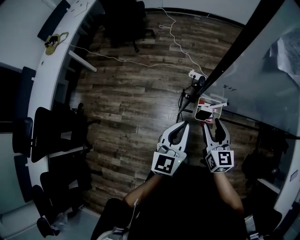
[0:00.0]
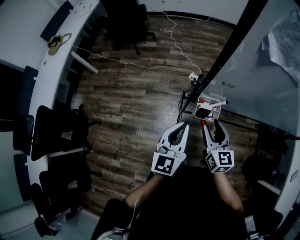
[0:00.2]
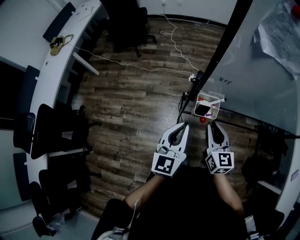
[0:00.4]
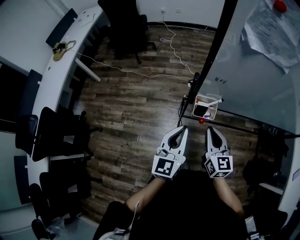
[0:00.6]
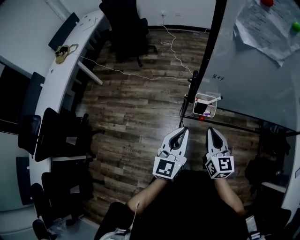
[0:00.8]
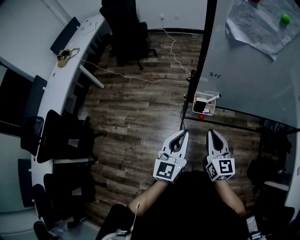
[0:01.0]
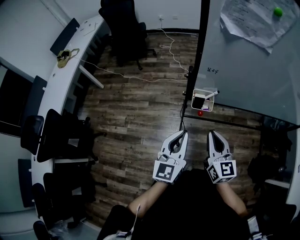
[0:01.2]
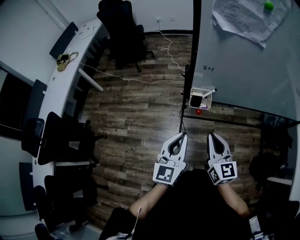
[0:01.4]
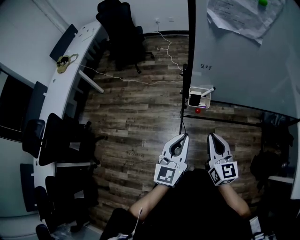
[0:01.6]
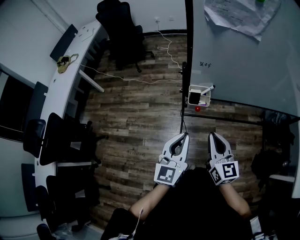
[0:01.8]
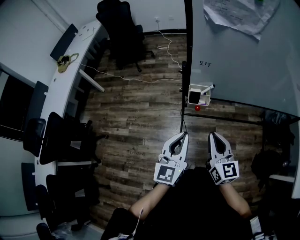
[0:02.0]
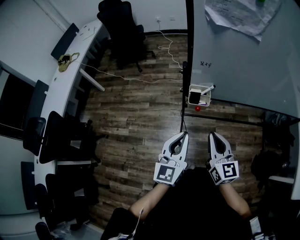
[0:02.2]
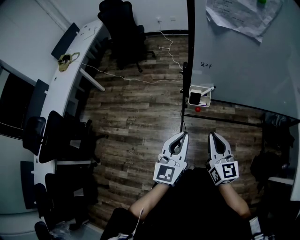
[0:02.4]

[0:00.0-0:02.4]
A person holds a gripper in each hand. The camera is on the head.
0:00.0 to 0:01.2: The left gripper moves backward, roughly 10 cm, while the right gripper moves backward and upward, approximately 15 cm, and closes.
0:01.2 to 0:02.4: The grippers make only small movements.

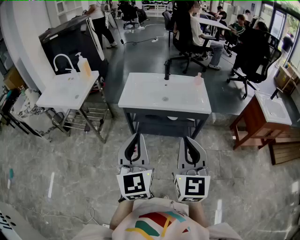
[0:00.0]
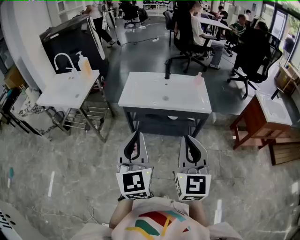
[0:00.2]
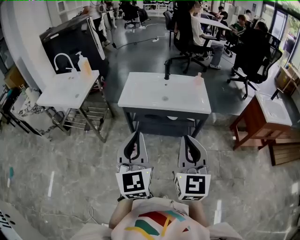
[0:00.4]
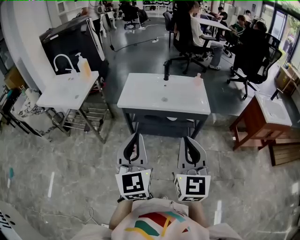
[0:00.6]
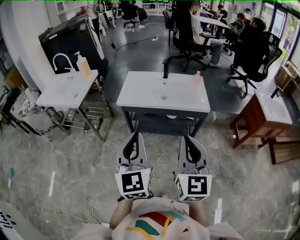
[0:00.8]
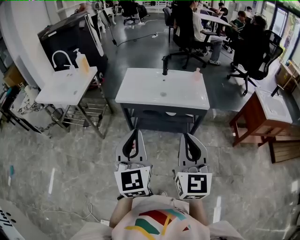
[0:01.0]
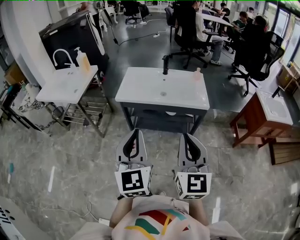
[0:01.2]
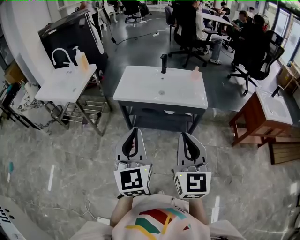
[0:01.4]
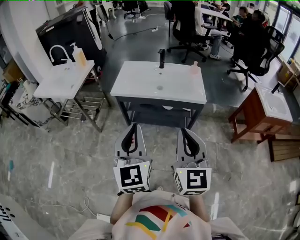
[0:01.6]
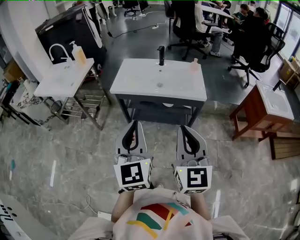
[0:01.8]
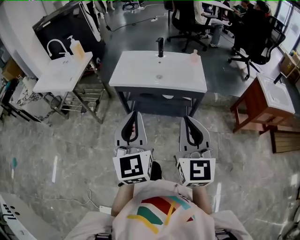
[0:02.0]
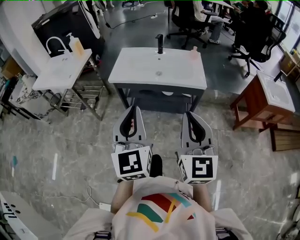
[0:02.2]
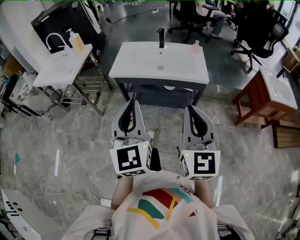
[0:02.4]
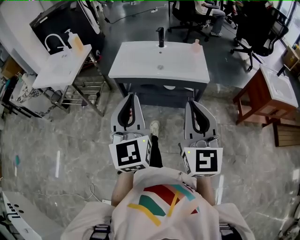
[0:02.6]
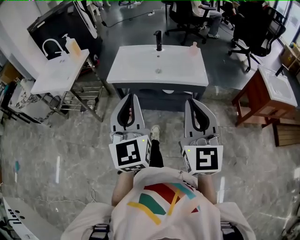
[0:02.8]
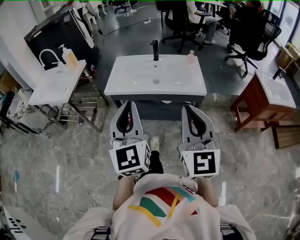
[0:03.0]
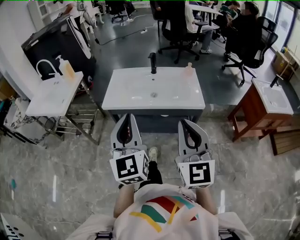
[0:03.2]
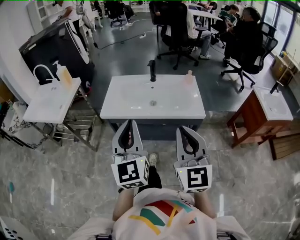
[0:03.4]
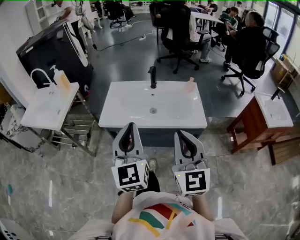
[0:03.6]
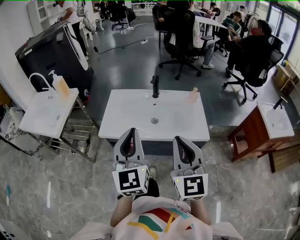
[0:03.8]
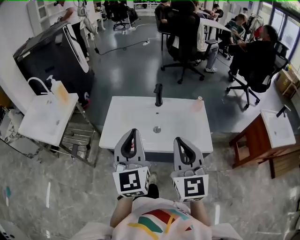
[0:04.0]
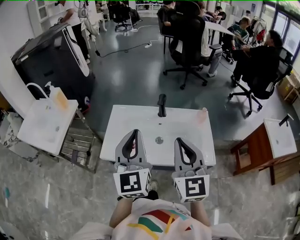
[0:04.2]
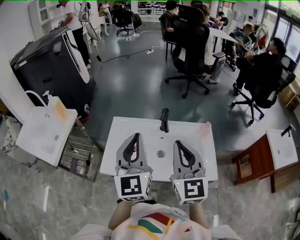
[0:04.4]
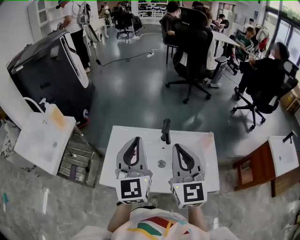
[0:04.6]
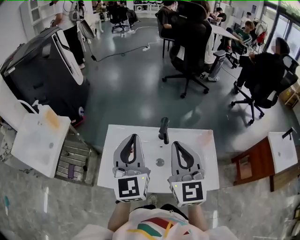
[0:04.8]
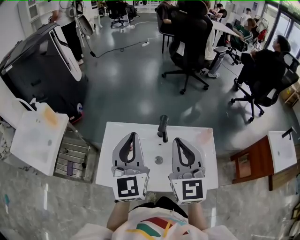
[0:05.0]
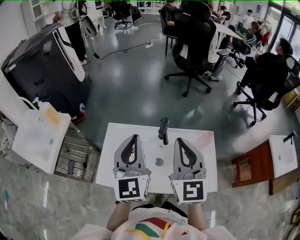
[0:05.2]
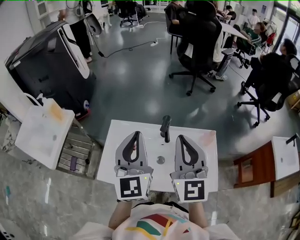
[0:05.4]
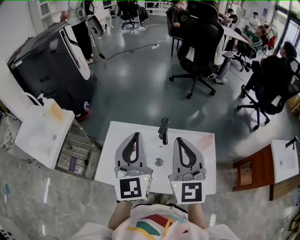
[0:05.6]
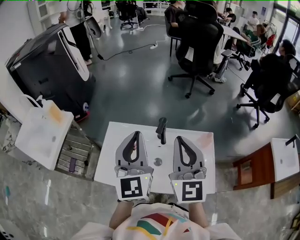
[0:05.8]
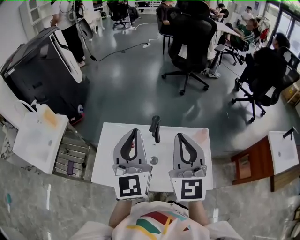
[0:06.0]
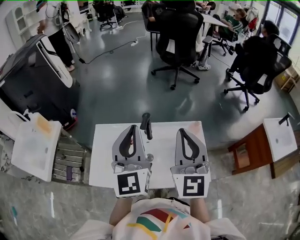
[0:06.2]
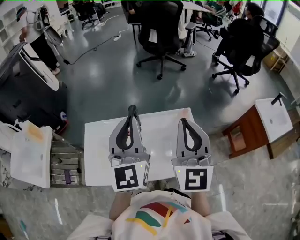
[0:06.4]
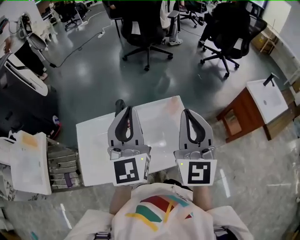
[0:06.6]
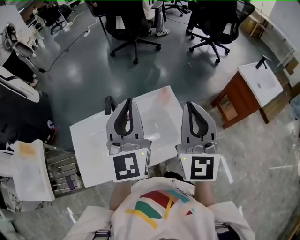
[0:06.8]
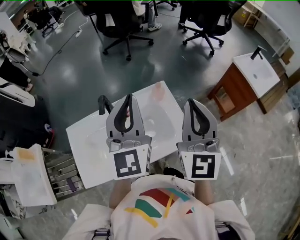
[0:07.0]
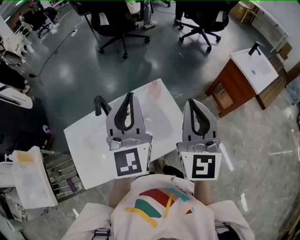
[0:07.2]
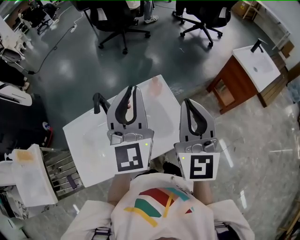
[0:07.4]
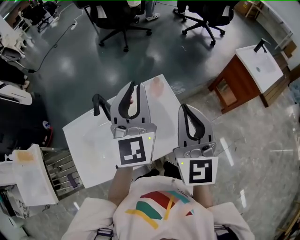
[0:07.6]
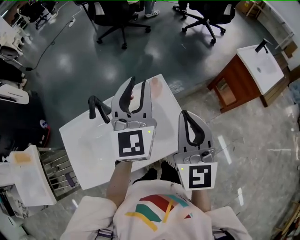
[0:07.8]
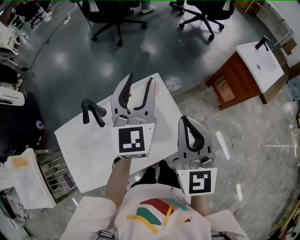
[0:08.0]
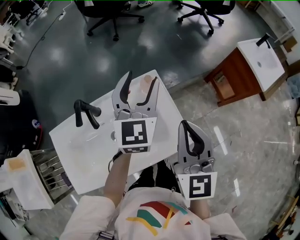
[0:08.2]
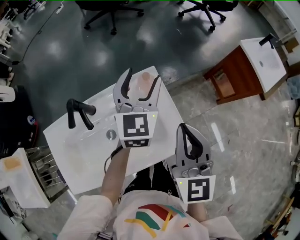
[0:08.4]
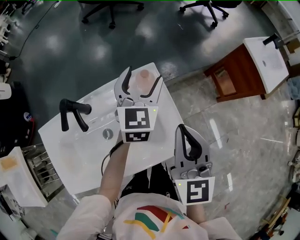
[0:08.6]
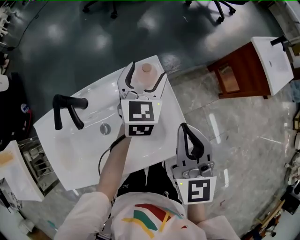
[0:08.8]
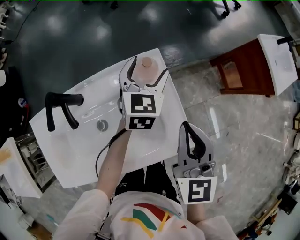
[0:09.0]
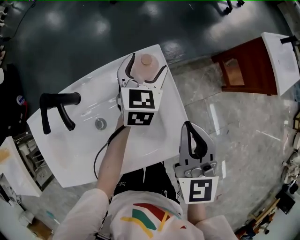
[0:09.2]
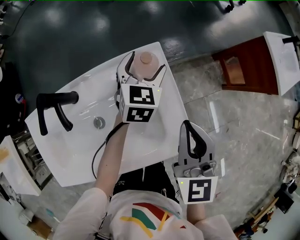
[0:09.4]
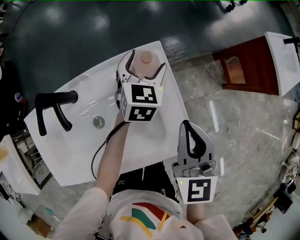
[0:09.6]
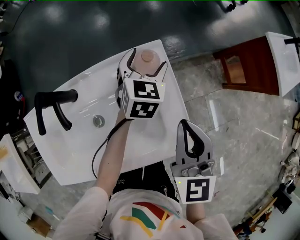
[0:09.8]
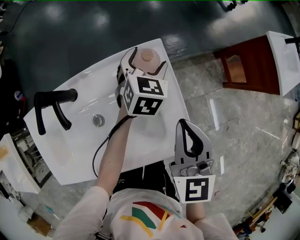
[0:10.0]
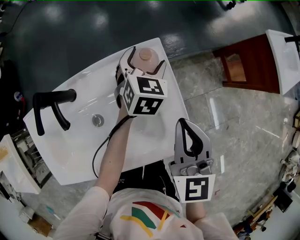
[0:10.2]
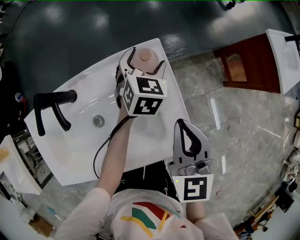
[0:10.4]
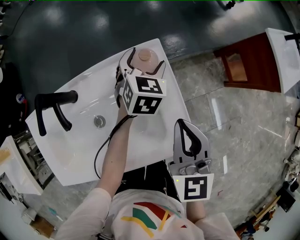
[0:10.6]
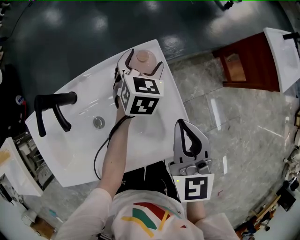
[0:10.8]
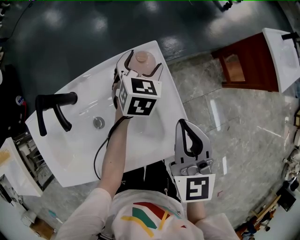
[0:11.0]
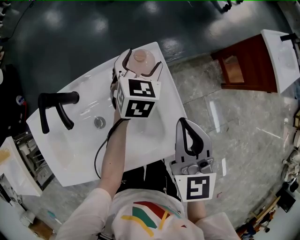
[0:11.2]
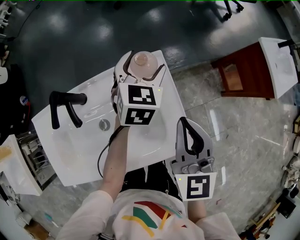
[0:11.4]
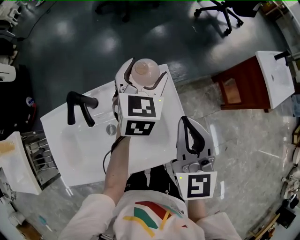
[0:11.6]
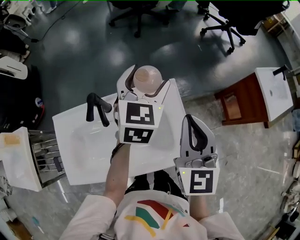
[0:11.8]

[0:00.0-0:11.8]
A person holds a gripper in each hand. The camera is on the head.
0:00.0 to 0:01.4: There are only small adjustments of the grippers.
0:01.4 to 0:03.0: Both grippers move forward, some 5 cm.
0:03.0 to 0:04.4: Both grippers travel together forward, roughly 40 cm.
0:04.4 to 0:06.0: Both grippers travel together forward and to the right, some 10 cm.
0:06.0 to 0:07.4: The right gripper shifts by some 20 cm, and rotates approximately 30 degrees; the left gripper shifts by roughly 25 cm, and changes its angle by approximately 30 degrees.
0:07.4 to 0:08.8: The right gripper moves downward, approximately 20 cm, and changes its angle by about 20 degrees. Meanwhile the left gripper travels downward and forward by roughly 30 cm, swivels approximately 30 degrees, and opens up.
0:08.8 to 0:10.4: The left gripper shifts approximately 10 cm downward. Meanwhile the right gripper goes approximately 5 cm downward.
0:10.4 to 0:11.8: The left gripper heads upward, covering approximately 25 cm; the right gripper travels upward by roughly 15 cm.

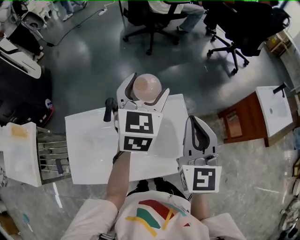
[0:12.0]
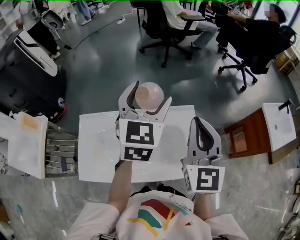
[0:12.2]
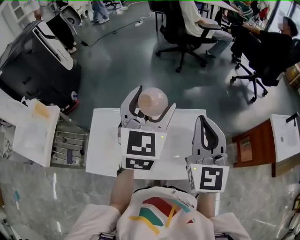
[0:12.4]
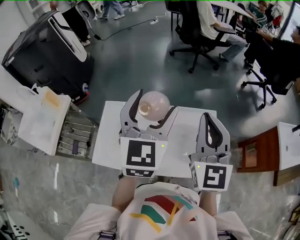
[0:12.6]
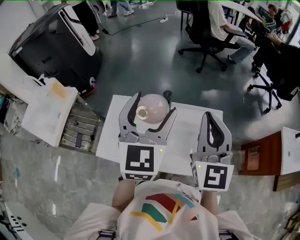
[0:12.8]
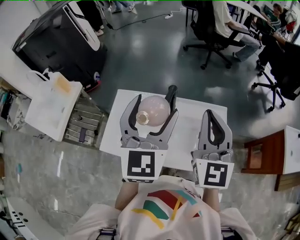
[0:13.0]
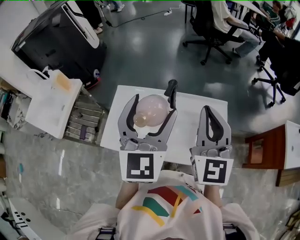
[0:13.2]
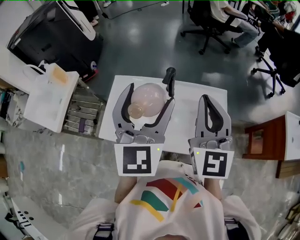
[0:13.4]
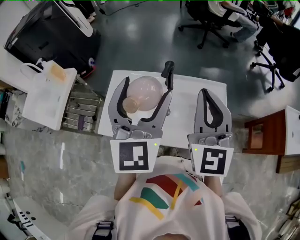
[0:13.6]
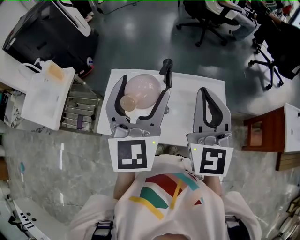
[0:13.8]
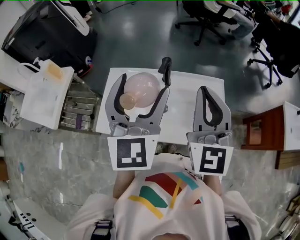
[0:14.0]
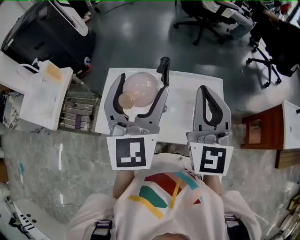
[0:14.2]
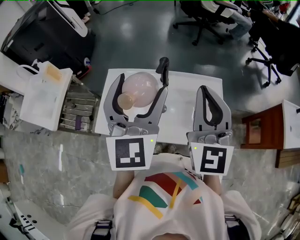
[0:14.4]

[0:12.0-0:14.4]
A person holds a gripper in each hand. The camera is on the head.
0:12.0 to 0:13.2: The right gripper travels to the left by some 15 cm, and rotates about 20 degrees; the left gripper is displaced to the left and backward by some 25 cm, and changes its angle by some 30 degrees.
0:13.2 to 0:14.4: The grippers move only a little.

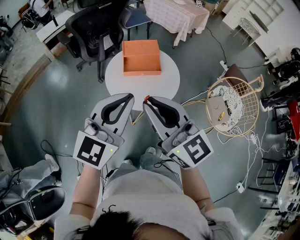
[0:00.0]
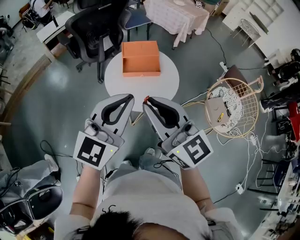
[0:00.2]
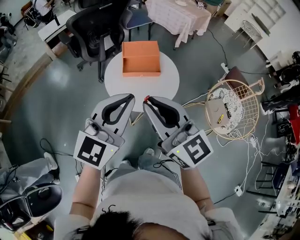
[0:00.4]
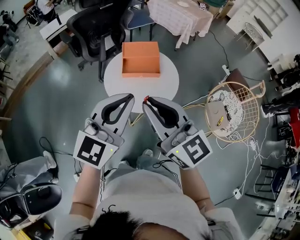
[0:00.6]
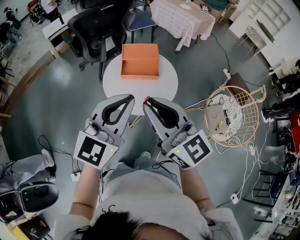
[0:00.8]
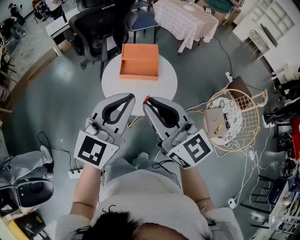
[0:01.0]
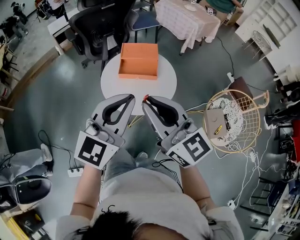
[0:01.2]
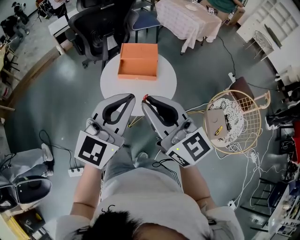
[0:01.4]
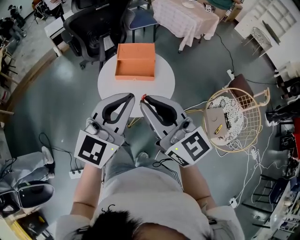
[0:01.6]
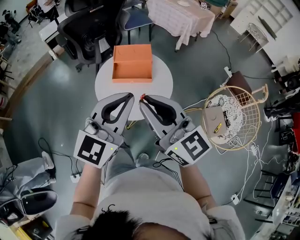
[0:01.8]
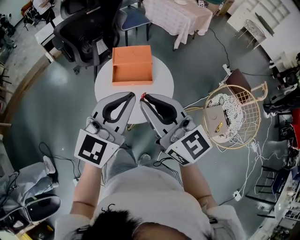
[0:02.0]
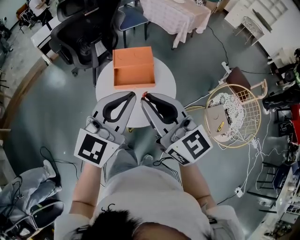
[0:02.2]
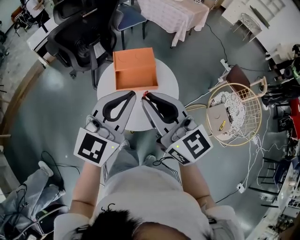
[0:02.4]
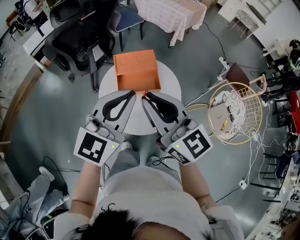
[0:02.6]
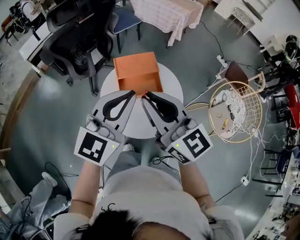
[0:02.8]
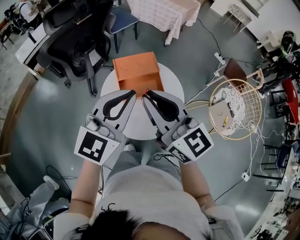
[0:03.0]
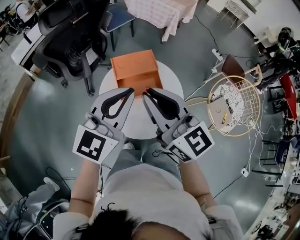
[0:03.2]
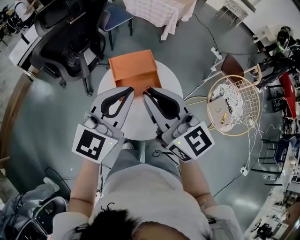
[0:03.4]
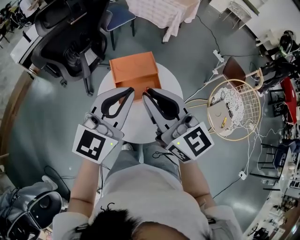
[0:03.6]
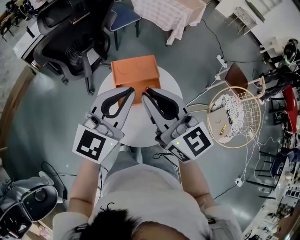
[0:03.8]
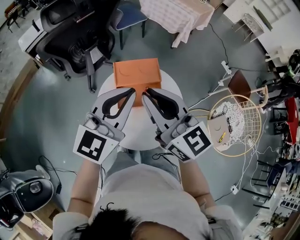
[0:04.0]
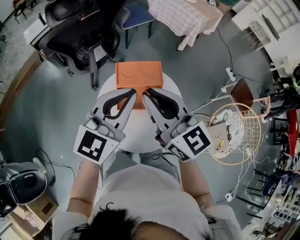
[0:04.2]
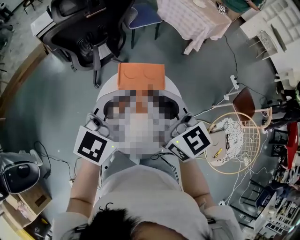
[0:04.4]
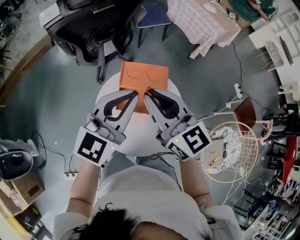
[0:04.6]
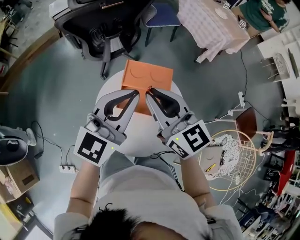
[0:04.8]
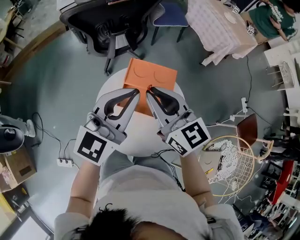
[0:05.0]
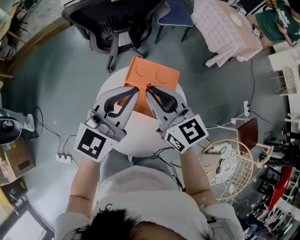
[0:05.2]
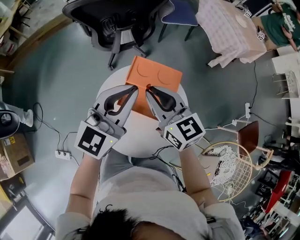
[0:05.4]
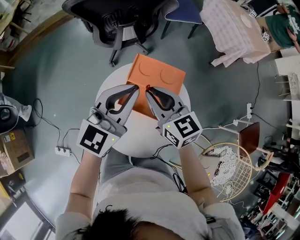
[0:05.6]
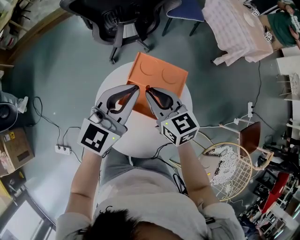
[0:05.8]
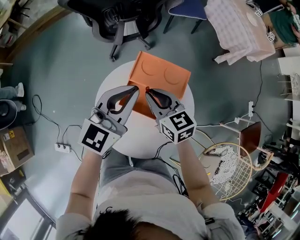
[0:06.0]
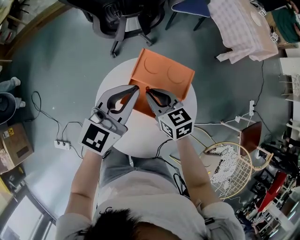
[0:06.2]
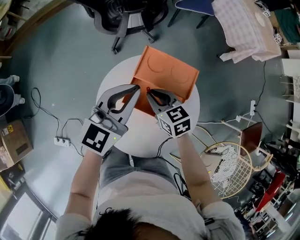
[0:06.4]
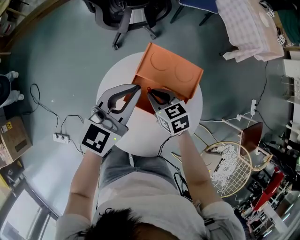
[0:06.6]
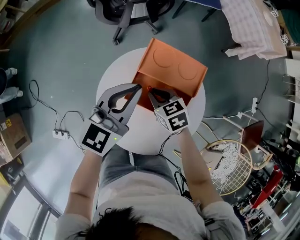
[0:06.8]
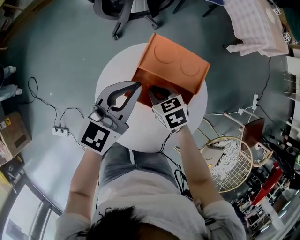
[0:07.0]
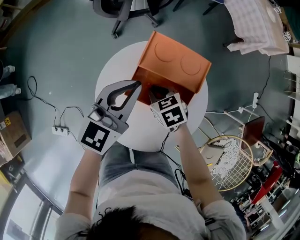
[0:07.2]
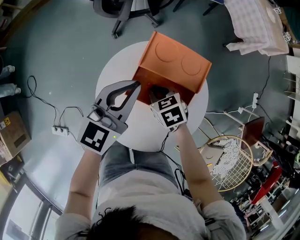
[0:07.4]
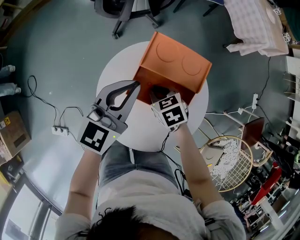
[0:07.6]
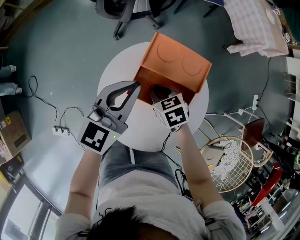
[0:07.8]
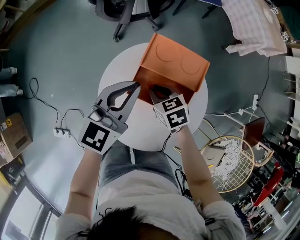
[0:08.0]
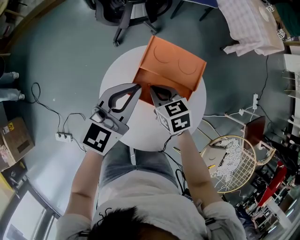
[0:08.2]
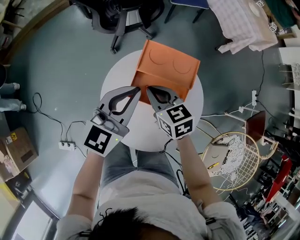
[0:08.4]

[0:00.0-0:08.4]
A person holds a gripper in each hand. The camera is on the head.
0:00.0 to 0:01.4: The grippers both shift to the right by roughly 10 cm.
0:01.4 to 0:02.8: Both grippers move forward and to the left, about 20 cm.
0:02.8 to 0:04.2: The grippers both shift forward by about 10 cm.
0:04.2 to 0:05.6: The right gripper goes about 15 cm downward and forward, and turns by roughly 30 degrees, while the left gripper goes approximately 10 cm downward and forward, and rotates roughly 20 degrees.
0:05.6 to 0:07.0: The left gripper travels downward by about 10 cm, while the right gripper shifts approximately 20 cm downward, and angles its fingers downward, by some 40 degrees.
0:07.0 to 0:08.4: The right gripper is displaced upward by some 10 cm, and rotates about 20 degrees.
